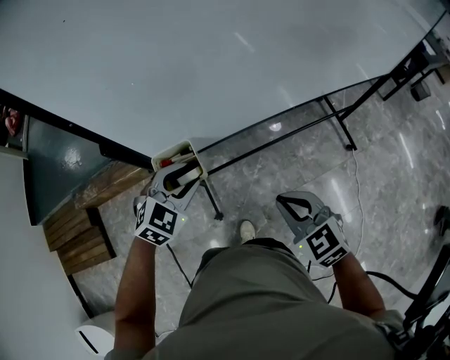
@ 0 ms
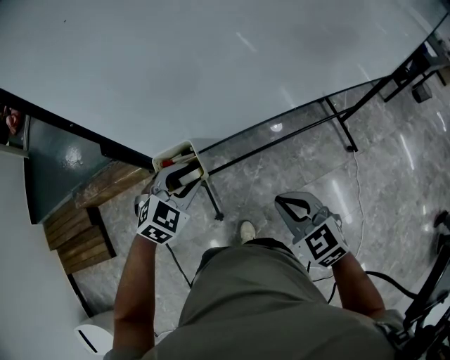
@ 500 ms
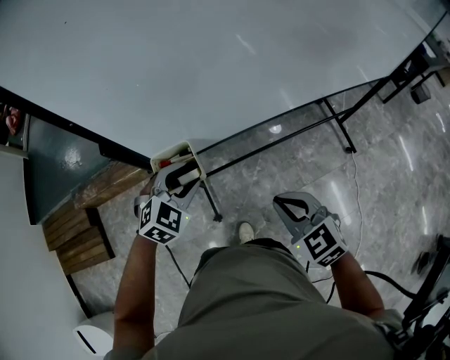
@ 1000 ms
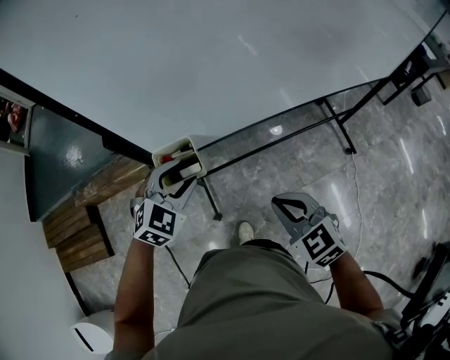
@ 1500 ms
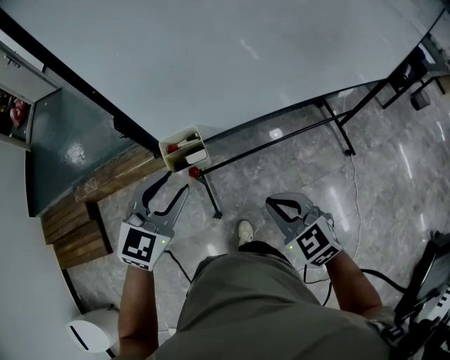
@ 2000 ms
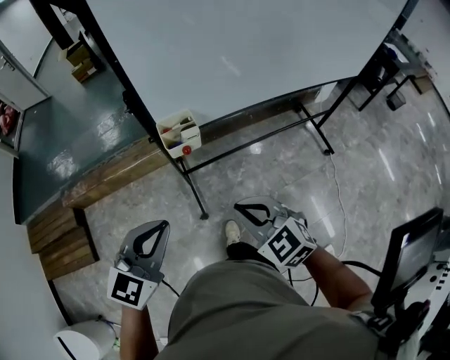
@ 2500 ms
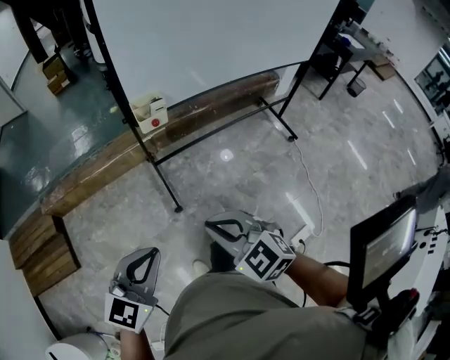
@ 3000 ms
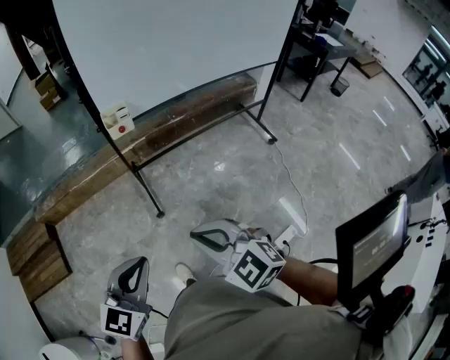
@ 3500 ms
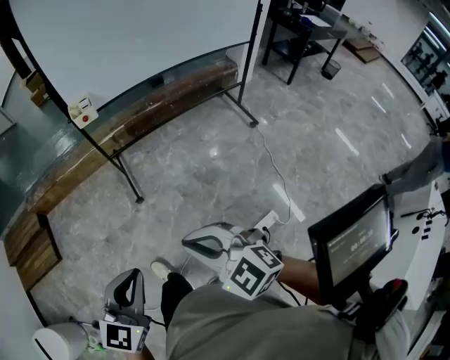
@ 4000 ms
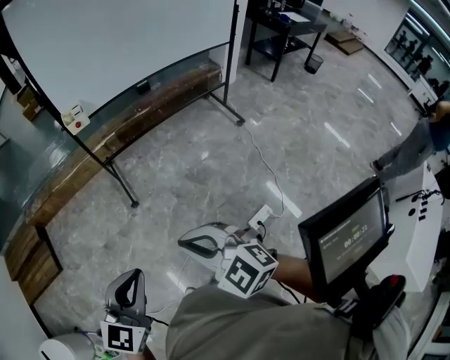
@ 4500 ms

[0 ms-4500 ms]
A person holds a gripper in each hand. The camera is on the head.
0 ms to 2000 ms: The left gripper moves upward and backward, roughly 10 cm, and changes its angle by roughly 20 degrees.
2000 ms to 4500 ms: Both grippers are carried backward, some 60 cm. The left gripper closes its fingers.

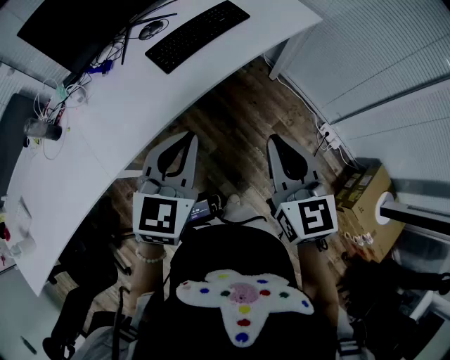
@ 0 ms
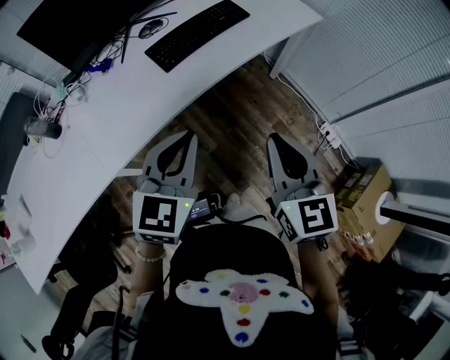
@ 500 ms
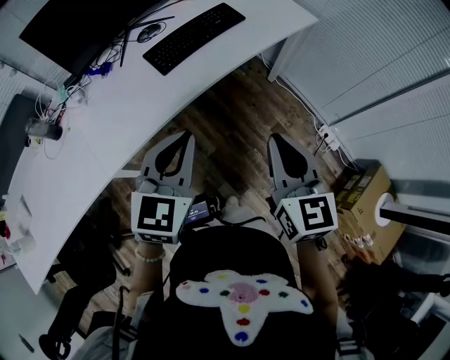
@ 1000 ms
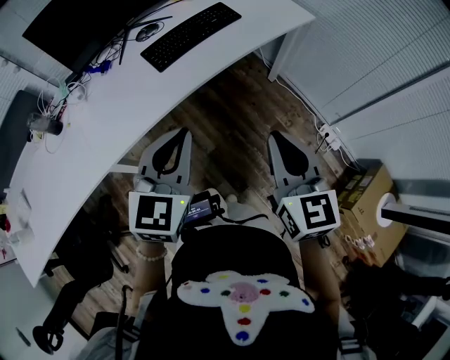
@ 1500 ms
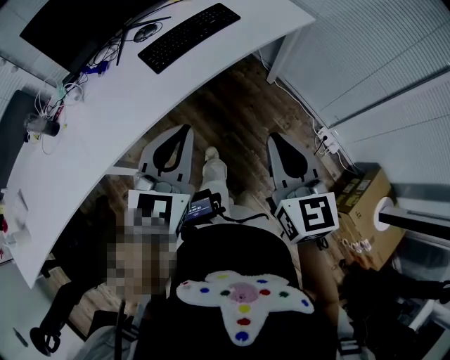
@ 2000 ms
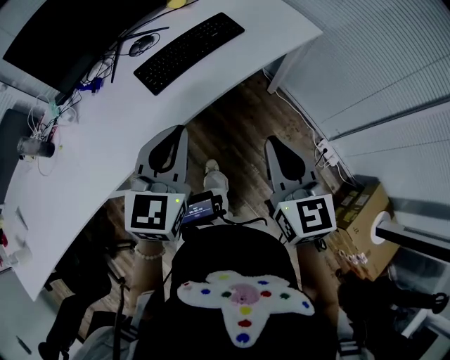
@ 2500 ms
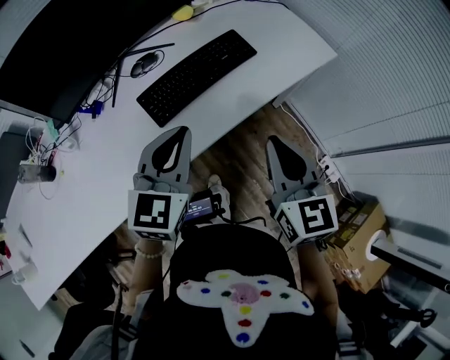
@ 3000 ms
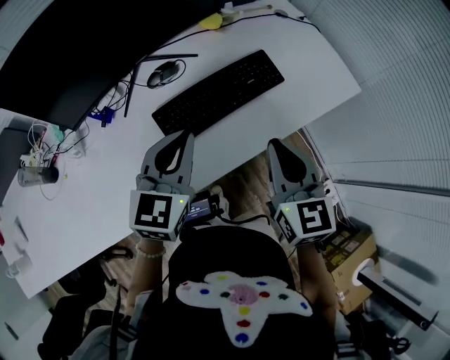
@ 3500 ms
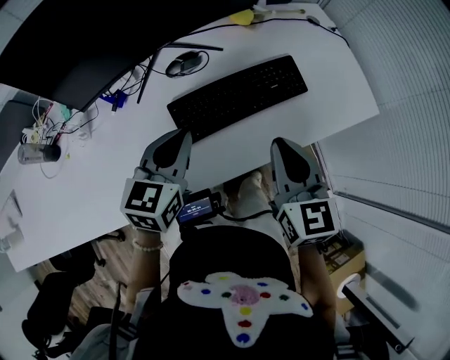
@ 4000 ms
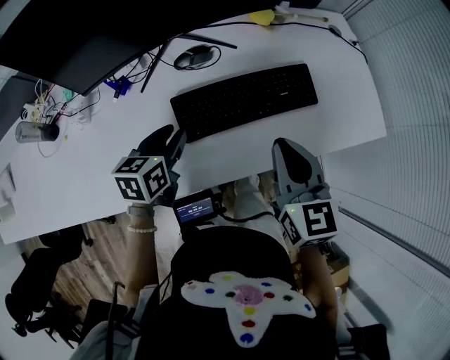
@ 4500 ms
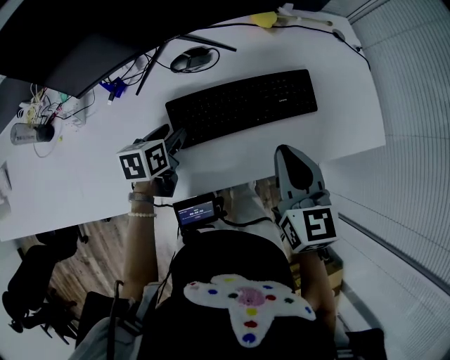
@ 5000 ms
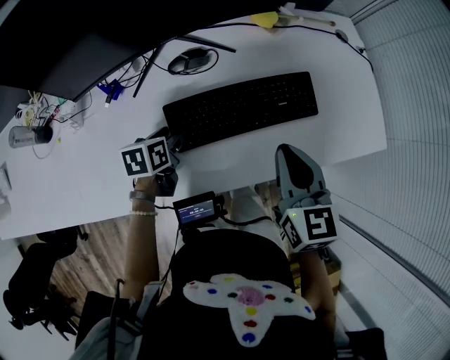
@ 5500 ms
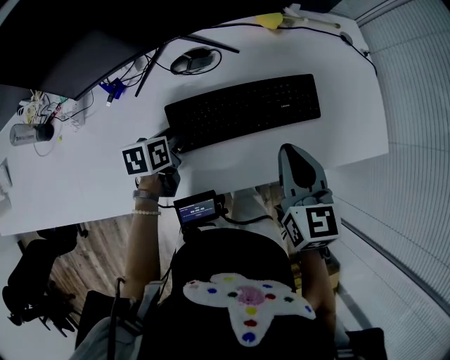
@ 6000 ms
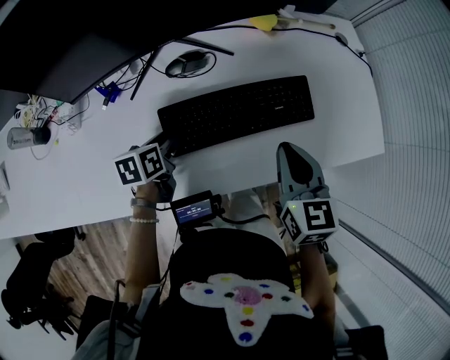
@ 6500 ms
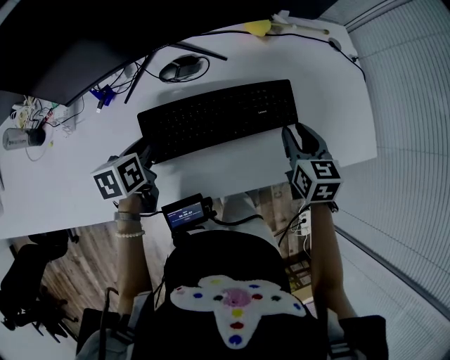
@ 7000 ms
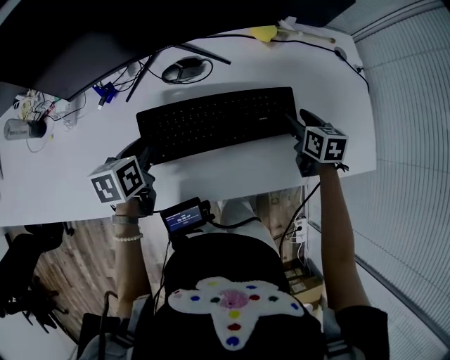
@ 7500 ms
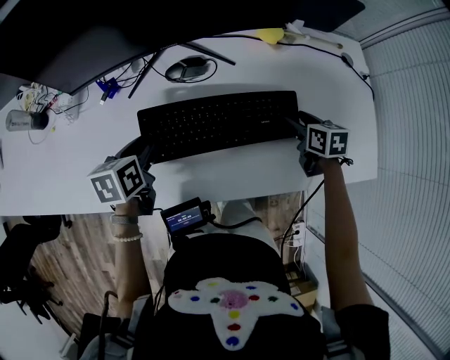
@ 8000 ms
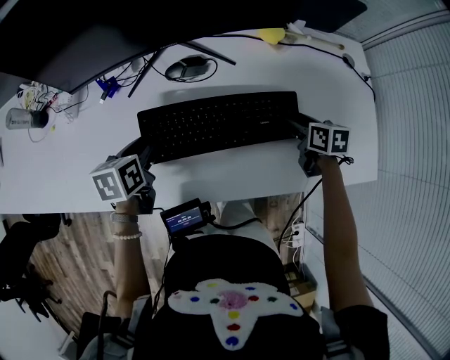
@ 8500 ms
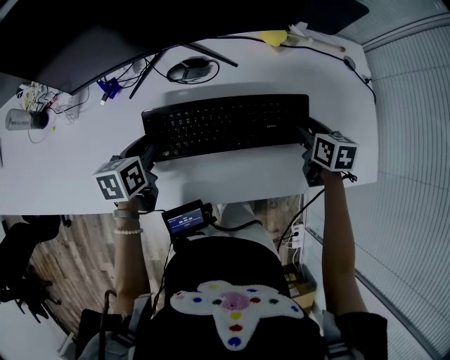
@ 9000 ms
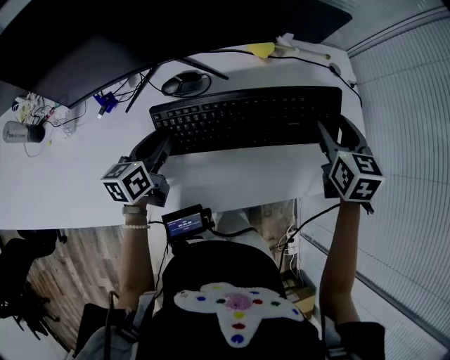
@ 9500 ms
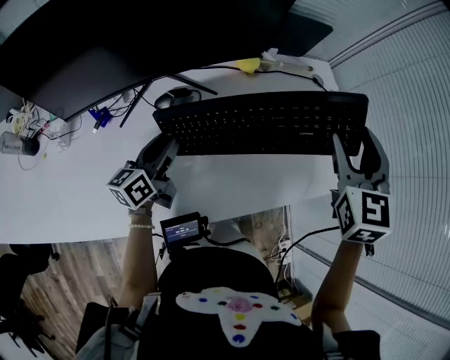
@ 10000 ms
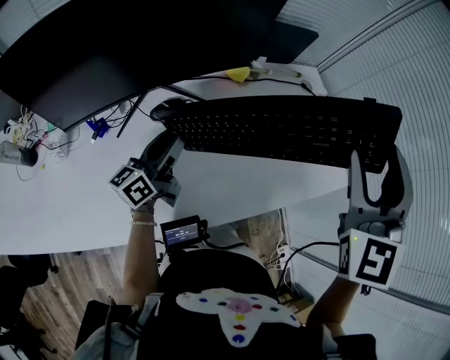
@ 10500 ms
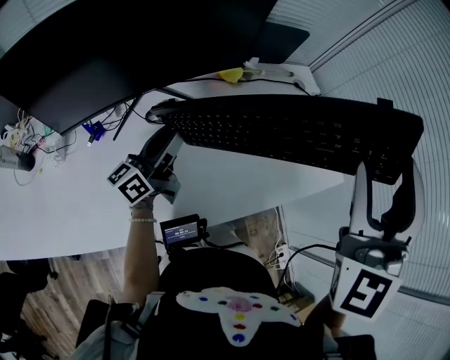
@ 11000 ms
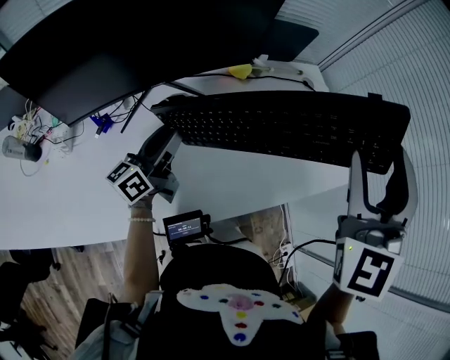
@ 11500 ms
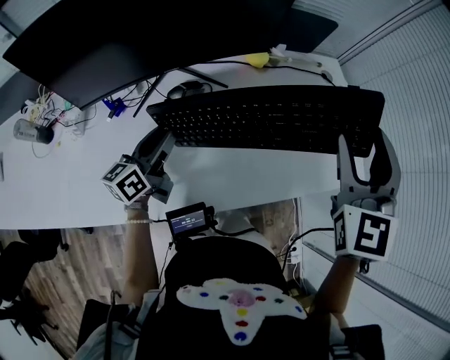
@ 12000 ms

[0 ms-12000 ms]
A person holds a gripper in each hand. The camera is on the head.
0 ms to 2000 ms: The right gripper goes approximately 5 cm to the right.
2000 ms to 4000 ms: The left gripper shifts some 35 cm forward and to the left, and rotates roughly 30 degrees. Meanwhile the right gripper is displaced forward by roughly 40 cm.
4000 ms to 6000 ms: The left gripper travels downward by about 20 cm, changes its angle by approximately 50 degrees, and opens, while the right gripper travels forward by approximately 10 cm.
6000 ms to 8000 ms: The left gripper is displaced upward by roughly 5 cm. Meanwhile the right gripper shifts roughly 25 cm downward, forward and to the right, turns by approximately 30 degrees, and opens up.
8000 ms to 10000 ms: The left gripper ends up about 10 cm from where it was, and points its fingers roughly 40 degrees further upward, while the right gripper travels upward by about 35 cm, and rotates approximately 50 degrees.
10000 ms to 12000 ms: The right gripper travels backward by some 5 cm, and reaches some 15 cm upward, then returns.

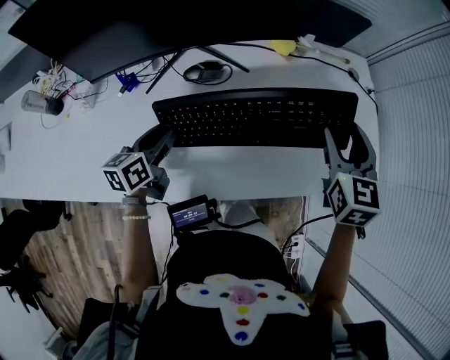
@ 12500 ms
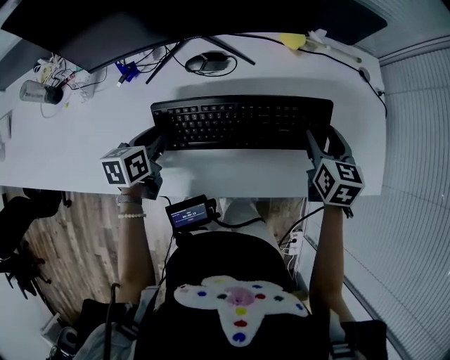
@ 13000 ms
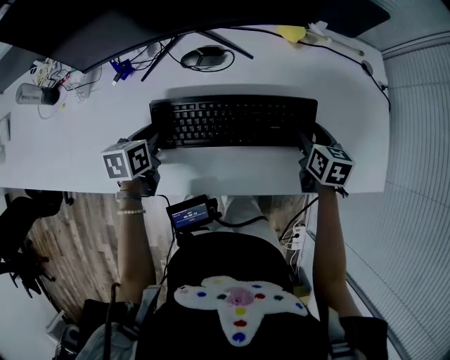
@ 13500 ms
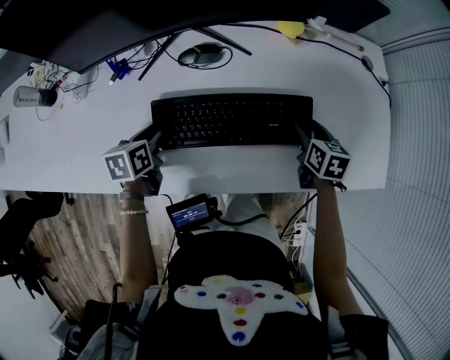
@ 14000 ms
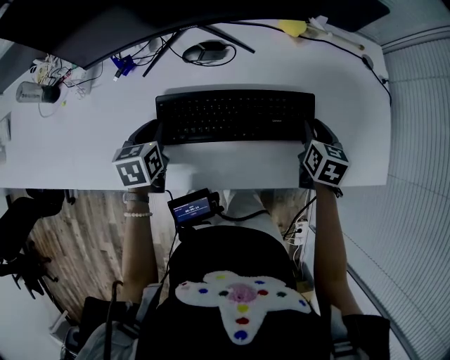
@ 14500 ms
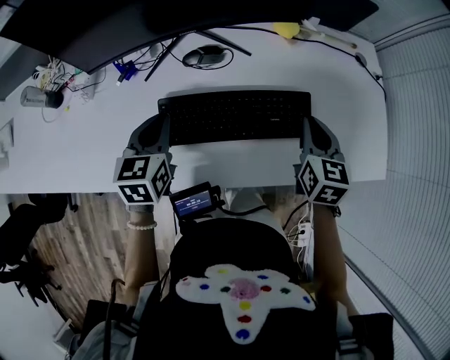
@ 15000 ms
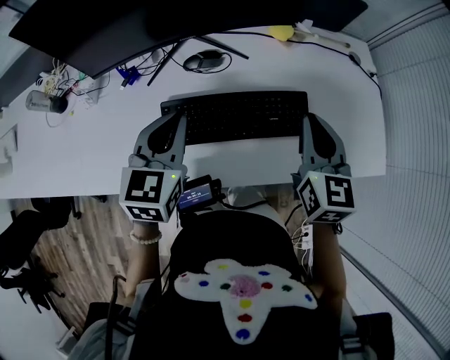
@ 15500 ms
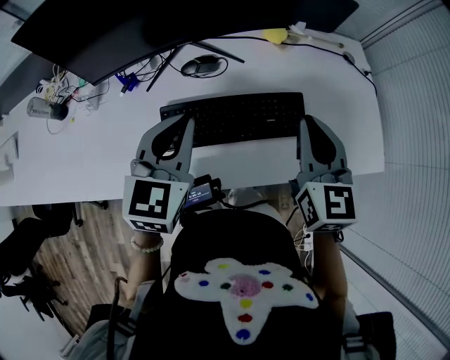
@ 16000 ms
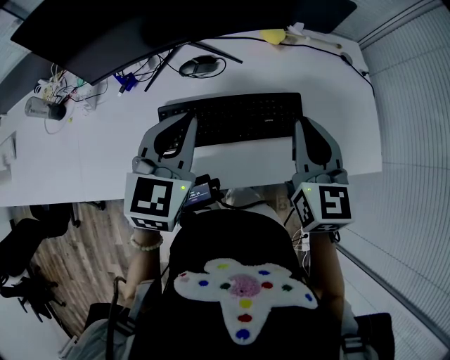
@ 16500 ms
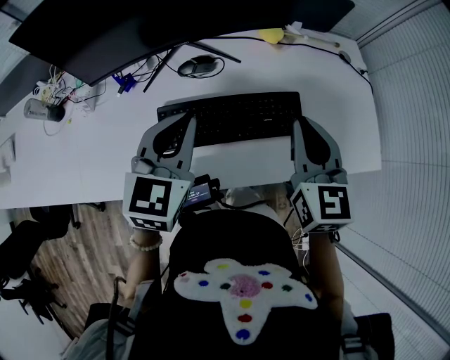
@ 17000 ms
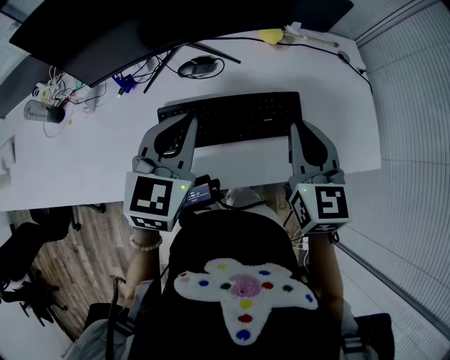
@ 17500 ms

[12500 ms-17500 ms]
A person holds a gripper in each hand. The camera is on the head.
12500 ms to 15000 ms: The left gripper travels downward and back again, approximately 10 cm each way, rotates some 30 degrees, and closes up. The right gripper is displaced downward by roughly 10 cm, and closes its fingers.
15000 ms to 17500 ms: The right gripper heads upward, backward and to the left, covering roughly 15 cm, while the left gripper is displaced upward and to the right by approximately 15 cm, and rotates roughly 20 degrees.

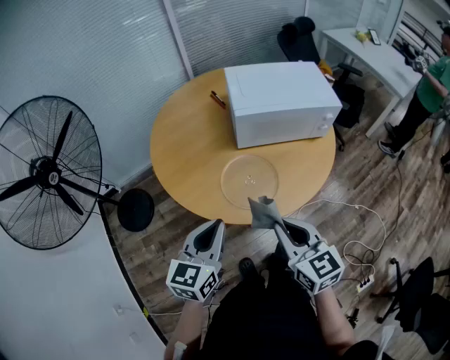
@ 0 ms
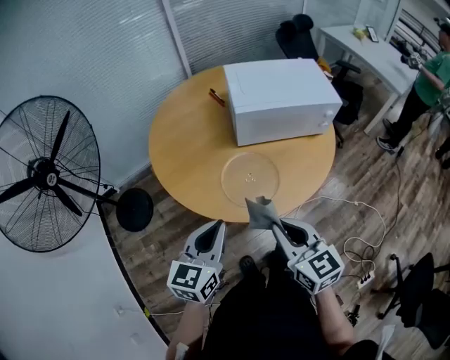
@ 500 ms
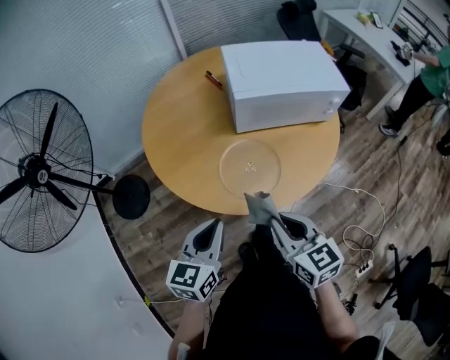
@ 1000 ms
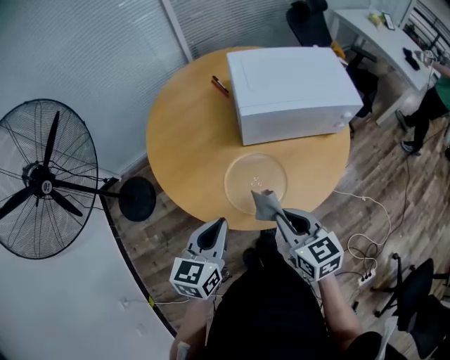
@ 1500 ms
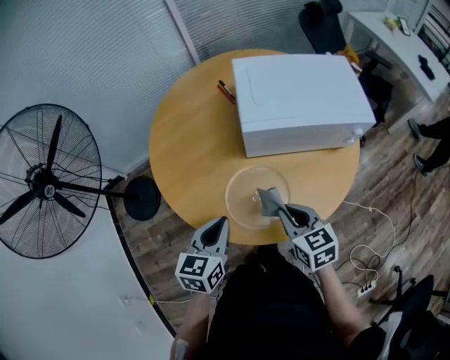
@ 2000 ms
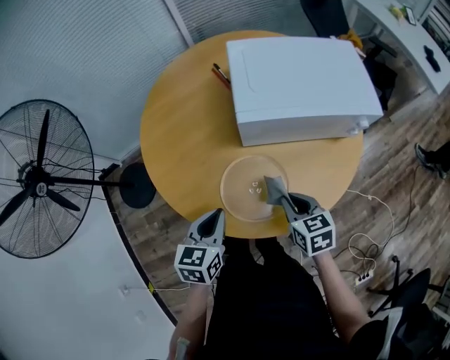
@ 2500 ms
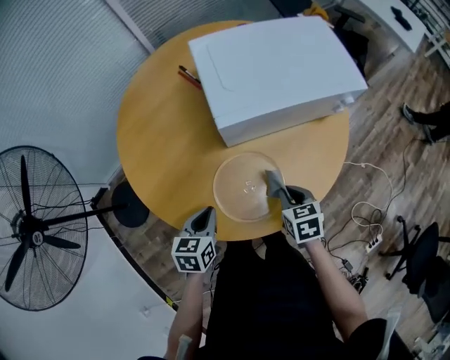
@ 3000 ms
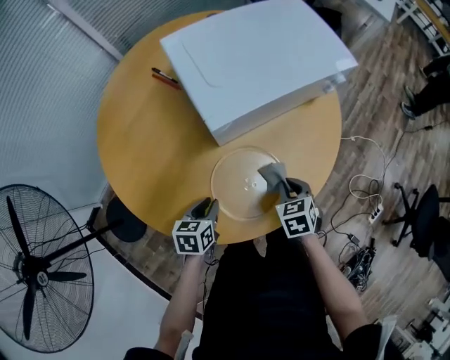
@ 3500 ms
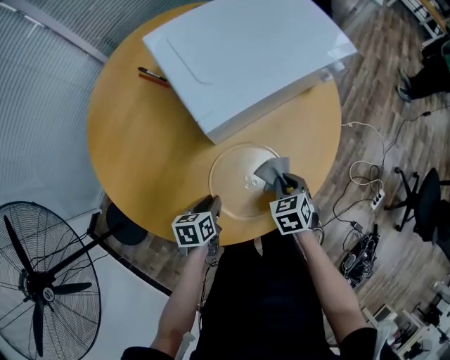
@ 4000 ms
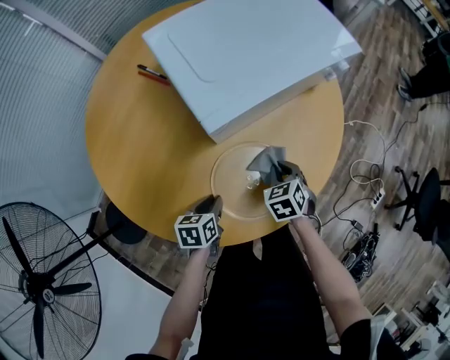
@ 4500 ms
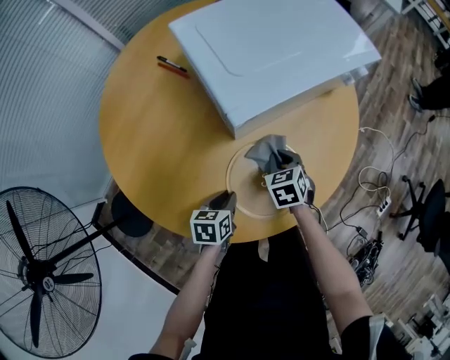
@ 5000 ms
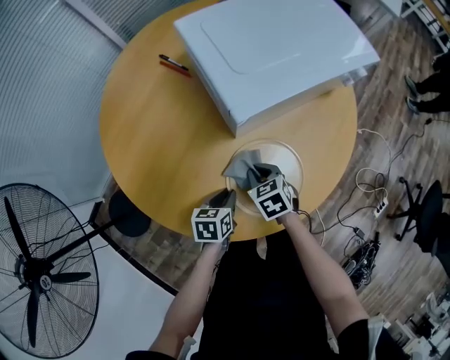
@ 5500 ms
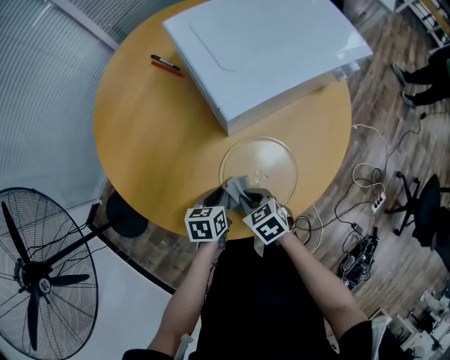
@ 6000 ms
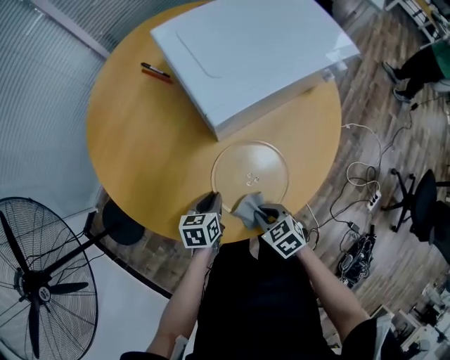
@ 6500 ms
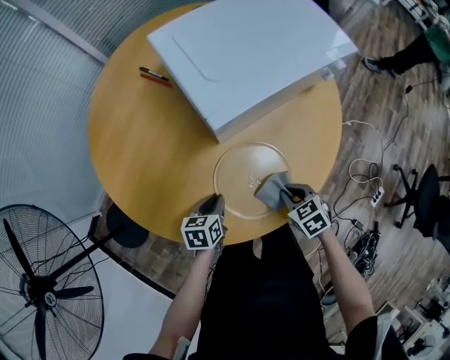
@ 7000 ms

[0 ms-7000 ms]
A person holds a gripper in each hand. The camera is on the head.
0 ms to 2000 ms: Both grippers move forward and downward, approximately 15 cm.
2000 ms to 3500 ms: The grippers both shift downward by approximately 20 cm. The left gripper swivels roughly 30 degrees; the right gripper rotates approximately 40 degrees.
3500 ms to 5000 ms: The right gripper travels to the left and forward by about 10 cm.
5000 ms to 7000 ms: The right gripper shifts by roughly 15 cm.
